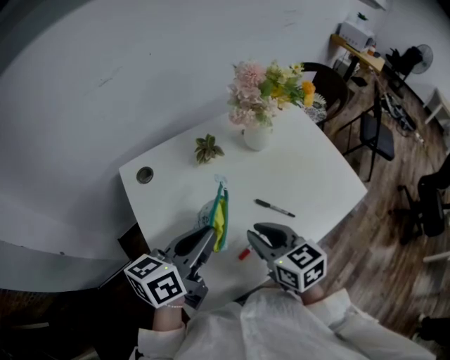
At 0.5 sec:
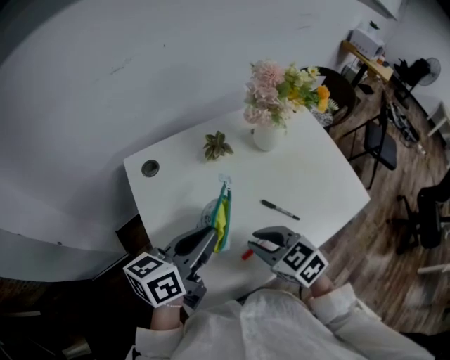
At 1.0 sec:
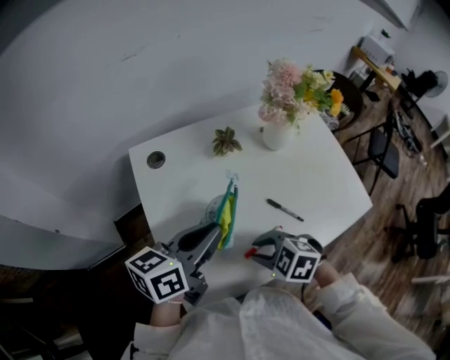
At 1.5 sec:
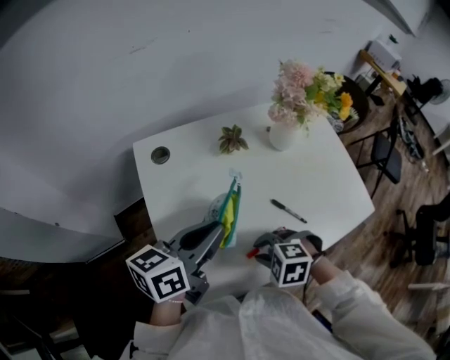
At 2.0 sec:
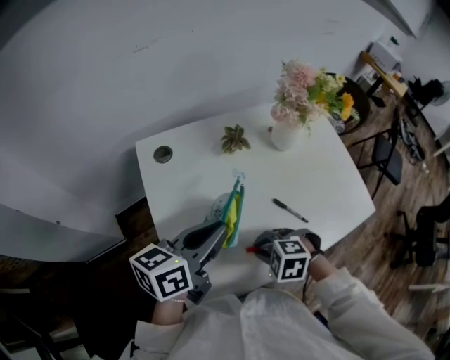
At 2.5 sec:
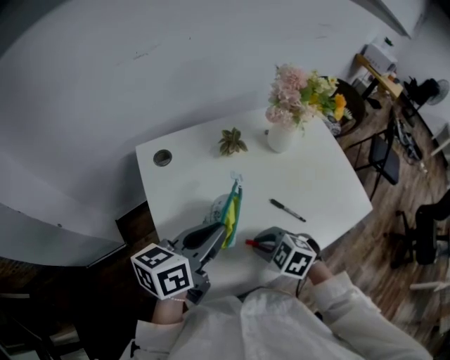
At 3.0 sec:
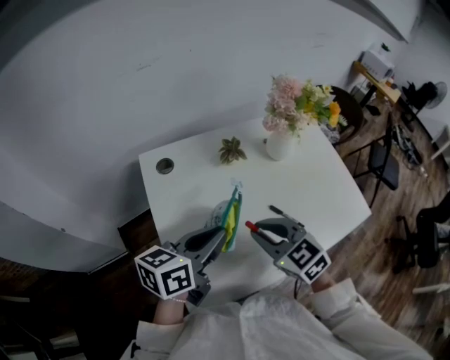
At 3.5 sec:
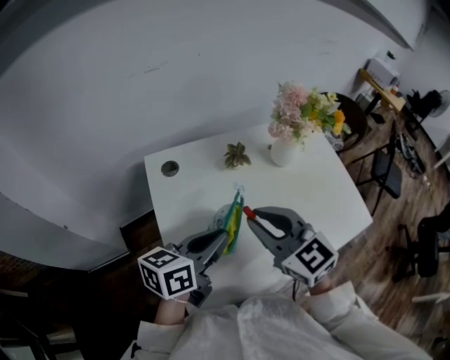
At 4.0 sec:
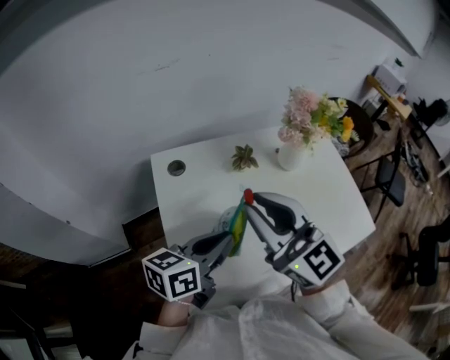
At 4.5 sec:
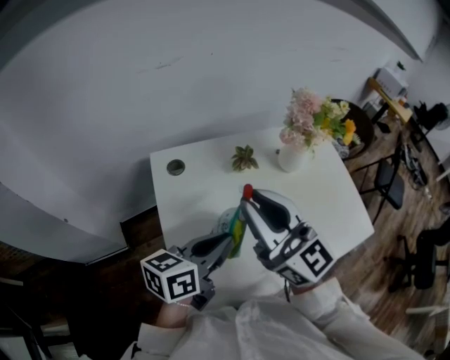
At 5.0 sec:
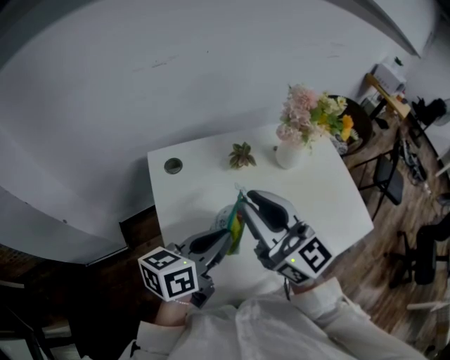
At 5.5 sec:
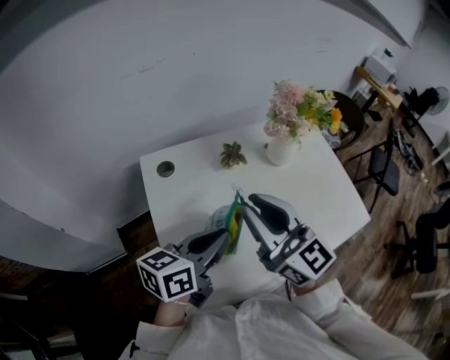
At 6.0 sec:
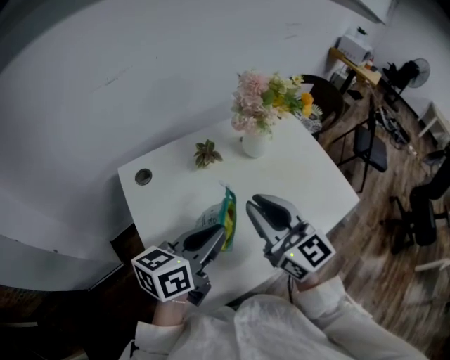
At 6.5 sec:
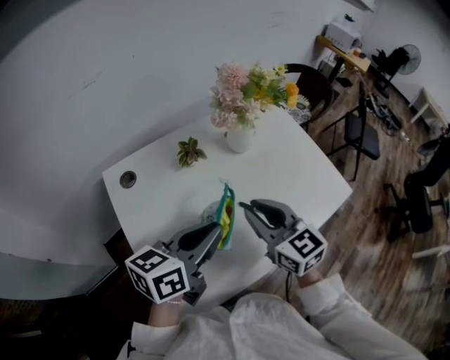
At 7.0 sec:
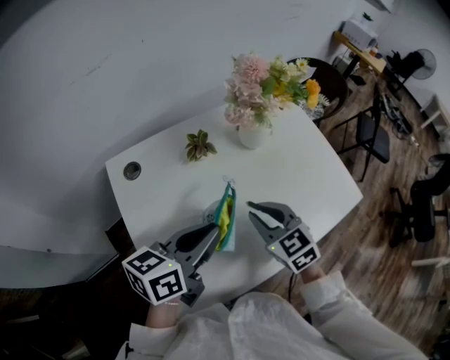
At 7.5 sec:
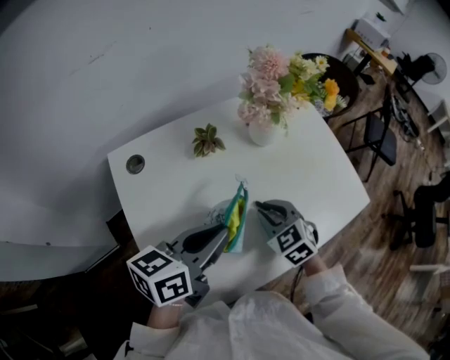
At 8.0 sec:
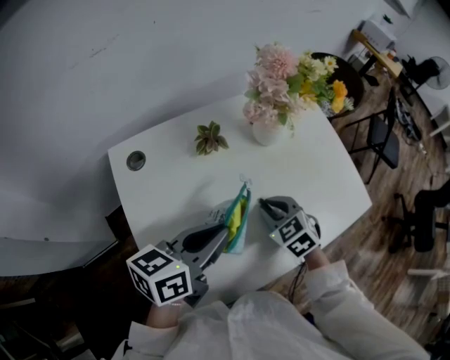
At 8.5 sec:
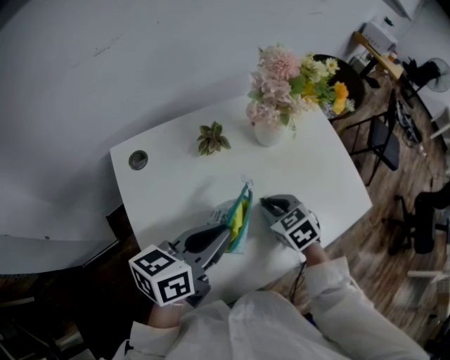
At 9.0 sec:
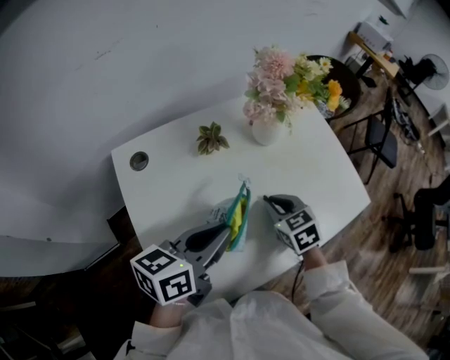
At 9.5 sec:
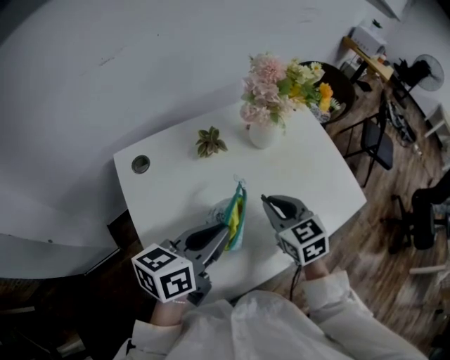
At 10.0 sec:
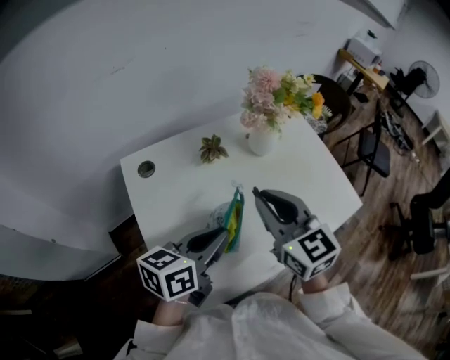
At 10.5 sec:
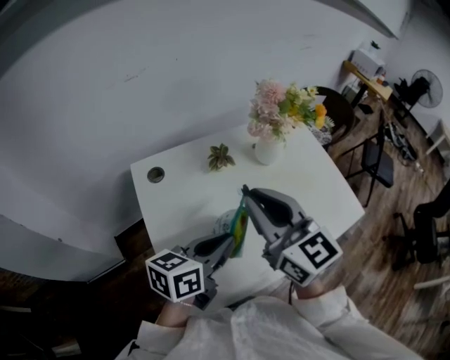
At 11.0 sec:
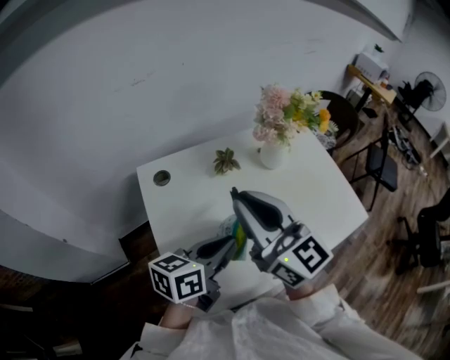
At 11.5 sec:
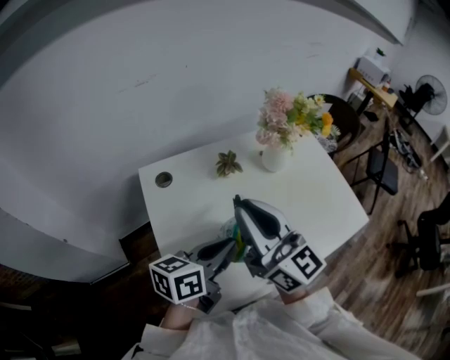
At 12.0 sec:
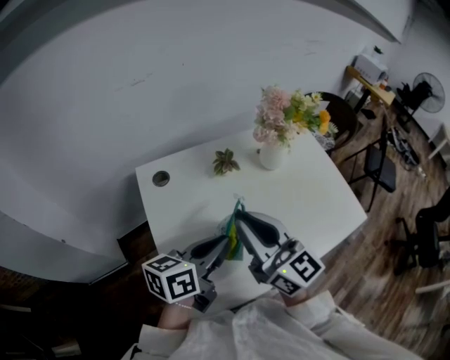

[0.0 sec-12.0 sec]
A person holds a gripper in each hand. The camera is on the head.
0.0 sec to 2.0 sec: The right gripper is displaced downward by roughly 10 cm, and tips its fingers downward by some 40 degrees.
2.0 sec to 4.0 sec: The right gripper moves upward, some 30 cm, and tips its fingers upward by approximately 80 degrees.
4.0 sec to 6.0 sec: The right gripper travels to the right and downward by about 10 cm, while the left gripper ends up some 5 cm from where it was.
6.0 sec to 8.0 sec: The right gripper is displaced downward by some 20 cm, and angles its fingers downward, by about 50 degrees.
8.0 sec to 10.0 sec: The right gripper heads upward, covering roughly 20 cm, and tilts its fingers approximately 40 degrees upward.
10.0 sec to 12.0 sec: The right gripper shifts some 5 cm to the left, and changes its angle by about 30 degrees.

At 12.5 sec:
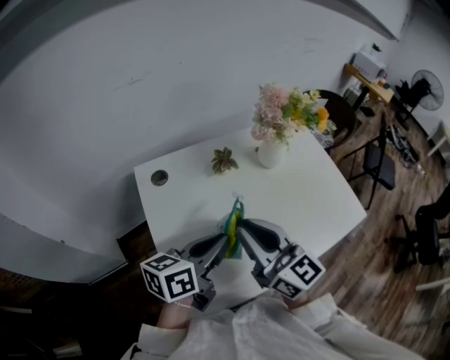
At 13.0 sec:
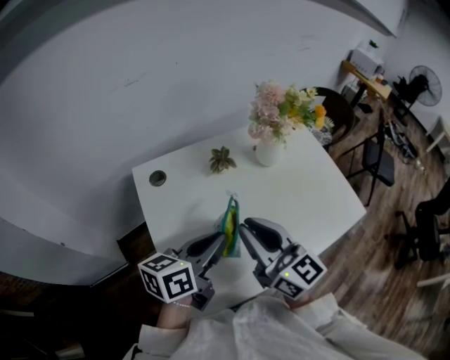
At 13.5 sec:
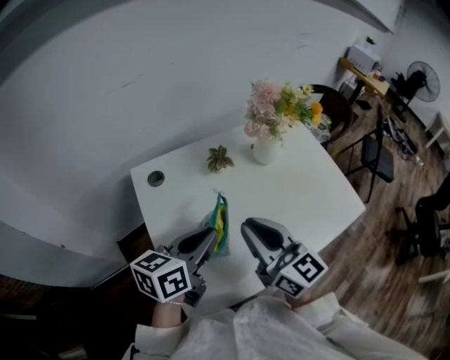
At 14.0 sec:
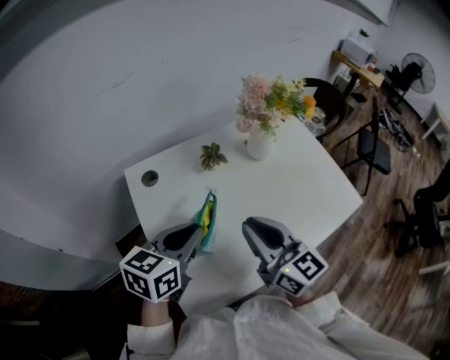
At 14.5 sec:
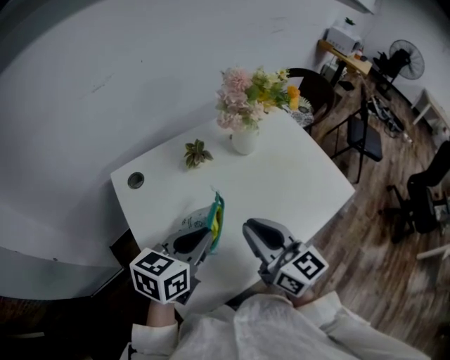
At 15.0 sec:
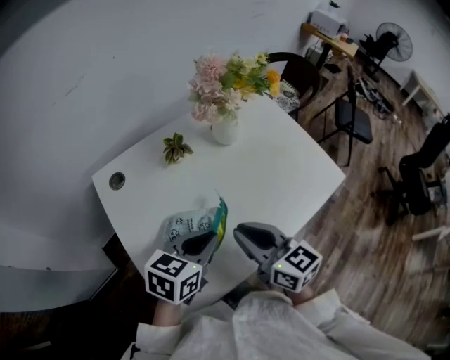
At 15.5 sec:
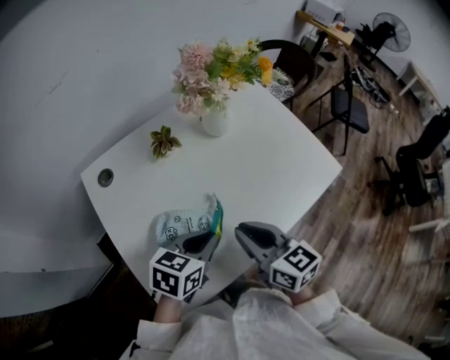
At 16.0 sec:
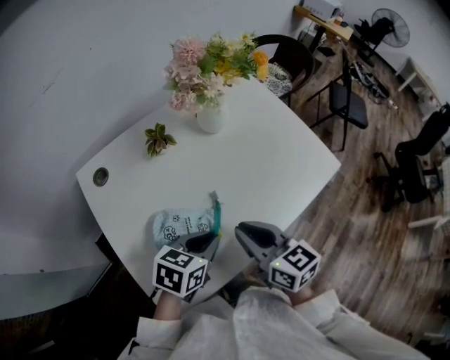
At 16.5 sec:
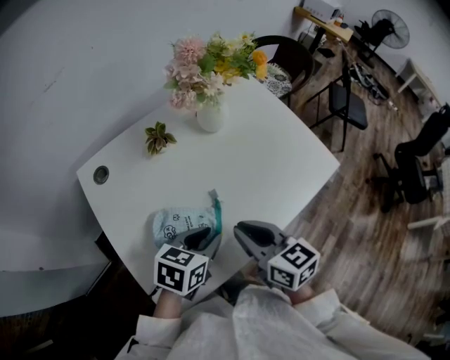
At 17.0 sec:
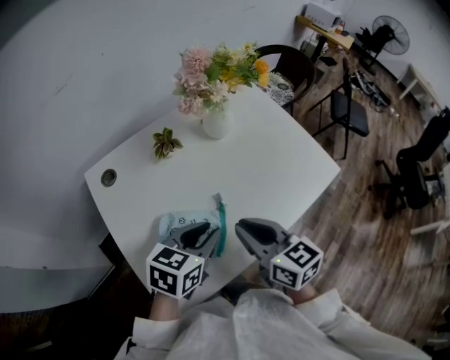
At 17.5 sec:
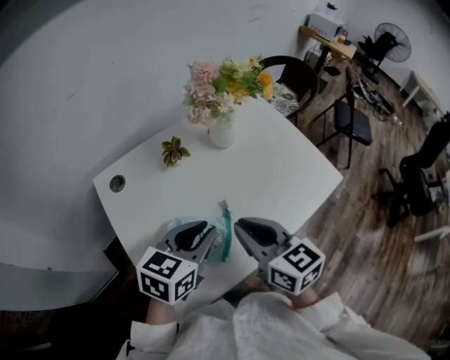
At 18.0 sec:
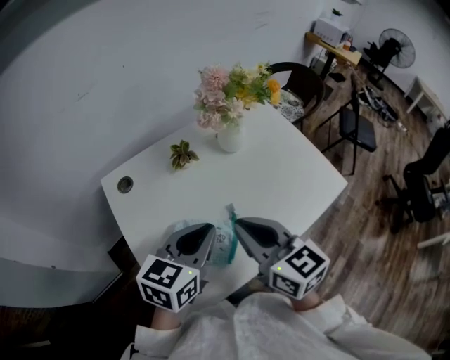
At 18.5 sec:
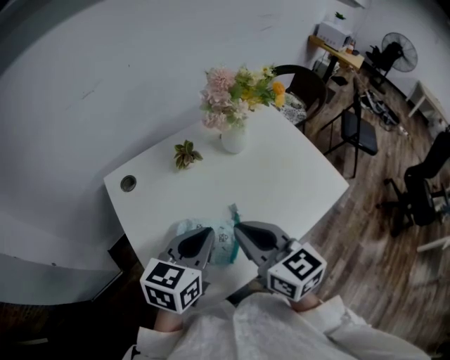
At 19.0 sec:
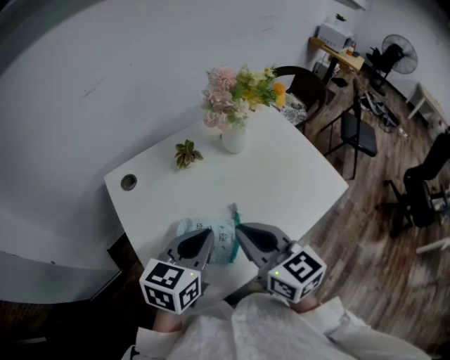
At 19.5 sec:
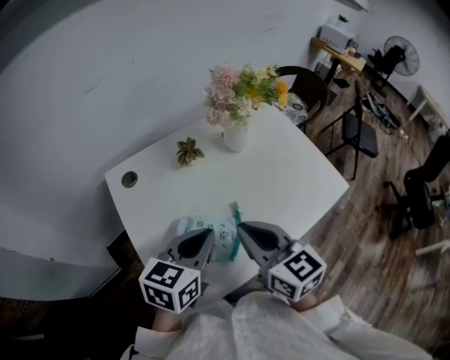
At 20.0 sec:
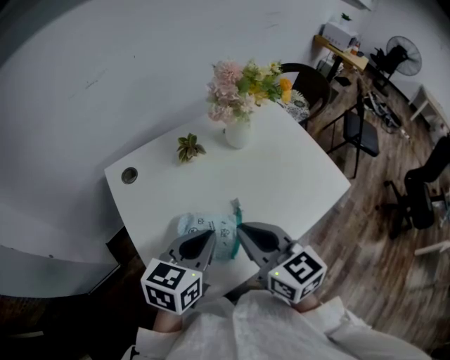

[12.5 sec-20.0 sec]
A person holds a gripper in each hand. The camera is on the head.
12.5 sec to 14.5 sec: The left gripper swivels about 20 degrees; the right gripper shifts approximately 5 cm to the right.
14.5 sec to 16.5 sec: The grippers both shift downward and to the right by approximately 10 cm.
16.5 sec to 18.0 sec: The left gripper moves upward, some 15 cm, and swivels roughly 20 degrees, while the right gripper is displaced upward and to the left by about 10 cm.
18.0 sec to 20.0 sec: The grippers make only small movements.

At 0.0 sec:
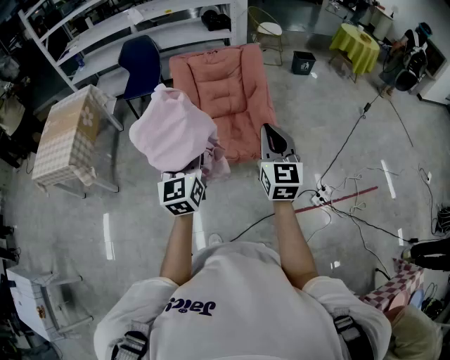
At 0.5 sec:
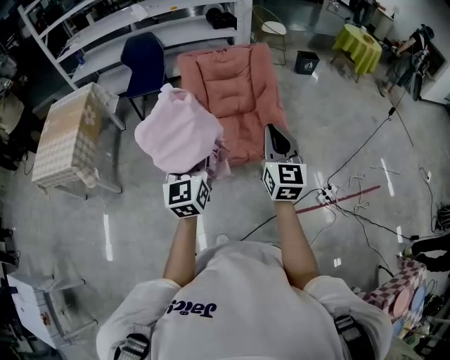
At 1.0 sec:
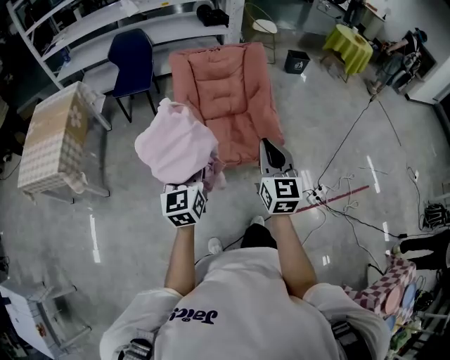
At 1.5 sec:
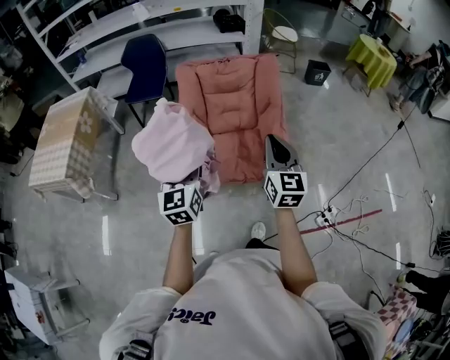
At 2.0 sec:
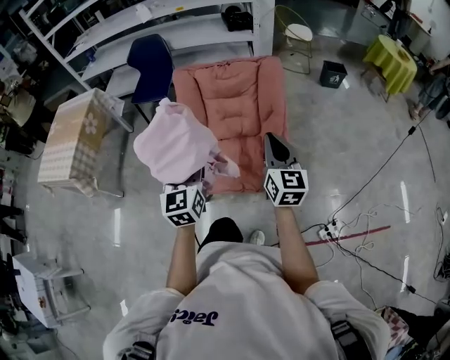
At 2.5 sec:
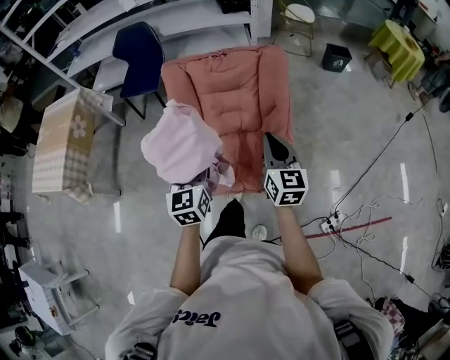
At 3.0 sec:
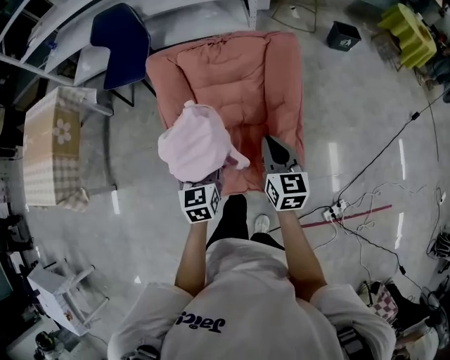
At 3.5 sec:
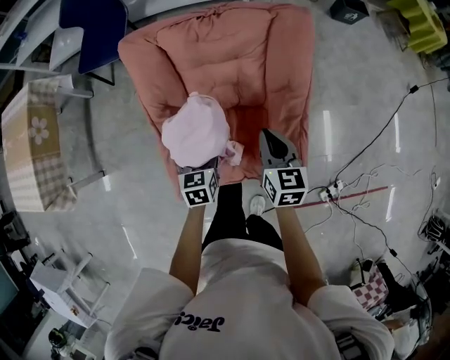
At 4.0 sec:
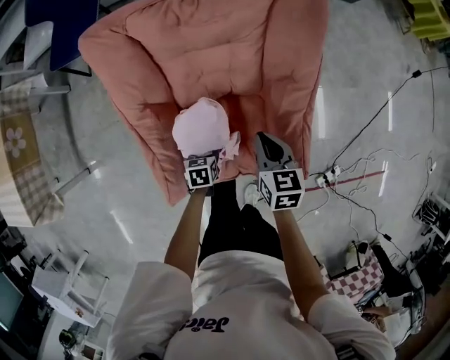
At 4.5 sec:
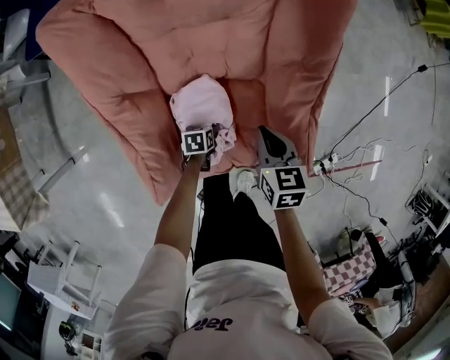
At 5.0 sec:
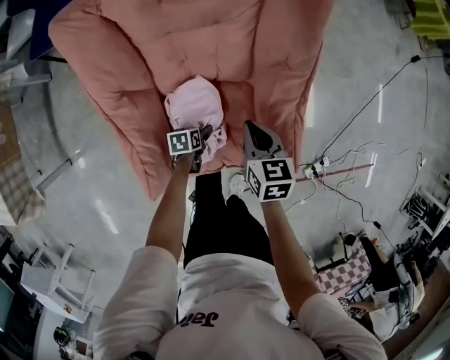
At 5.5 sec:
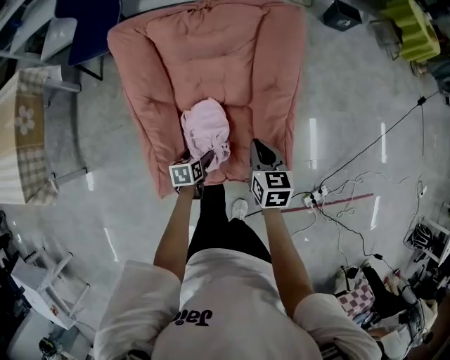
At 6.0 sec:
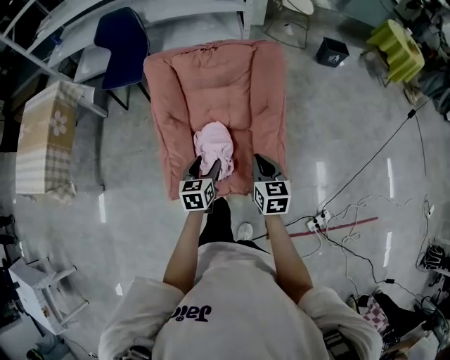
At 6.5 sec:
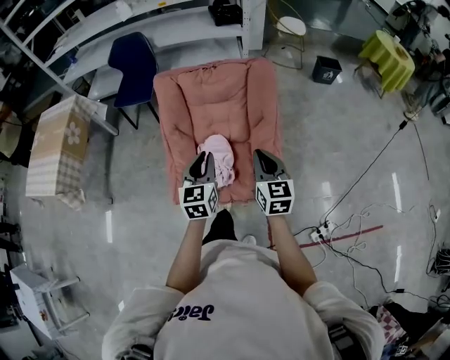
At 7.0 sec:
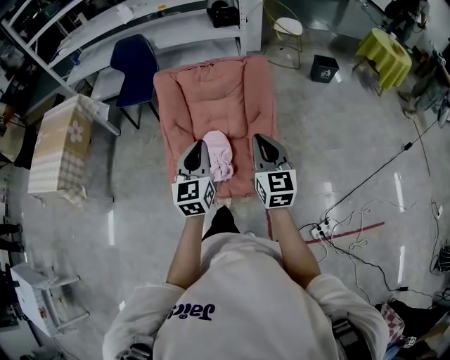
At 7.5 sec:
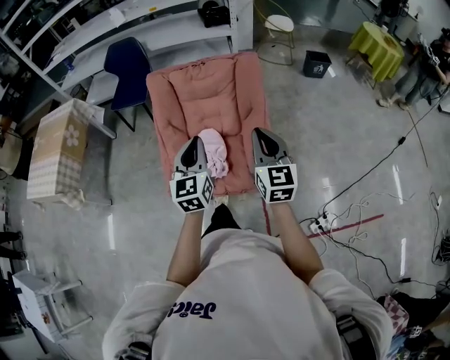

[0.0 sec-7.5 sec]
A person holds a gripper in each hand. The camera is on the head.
0.0 sec to 2.0 sec: The grippers both shift forward by roughly 25 cm.
2.0 sec to 4.0 sec: The two grippers go roughly 50 cm downward and forward. The left gripper tilts its fingers approximately 60 degrees downward. Meanwhile the right gripper tips its fingers downward by about 40 degrees.
4.0 sec to 5.5 sec: The right gripper shifts by some 5 cm; the left gripper reaches approximately 15 cm downward, then returns.
5.5 sec to 7.5 sec: The right gripper shifts some 35 cm upward and backward, and angles its fingers upward, by about 30 degrees, while the left gripper goes approximately 50 cm upward, angles its fingers upward, by about 50 degrees, and closes up.
